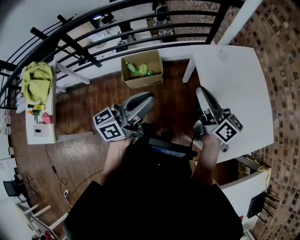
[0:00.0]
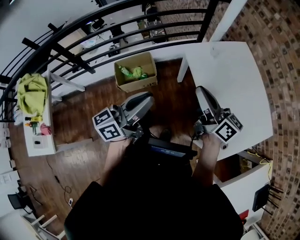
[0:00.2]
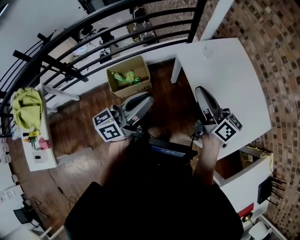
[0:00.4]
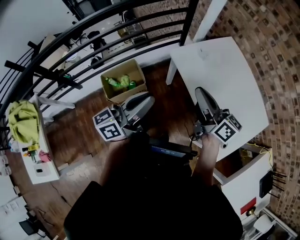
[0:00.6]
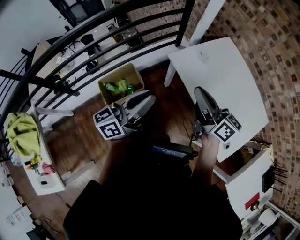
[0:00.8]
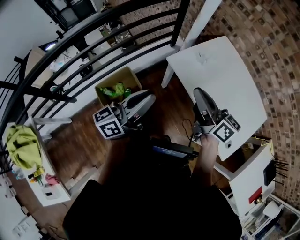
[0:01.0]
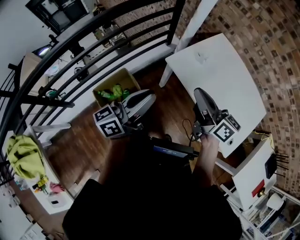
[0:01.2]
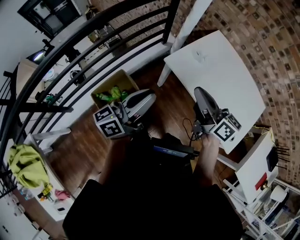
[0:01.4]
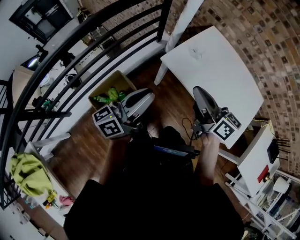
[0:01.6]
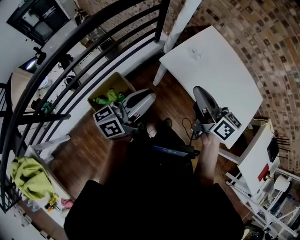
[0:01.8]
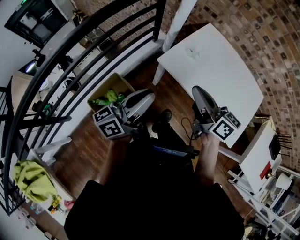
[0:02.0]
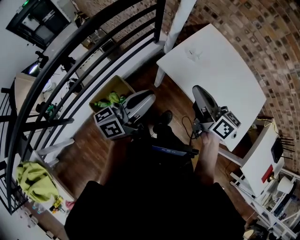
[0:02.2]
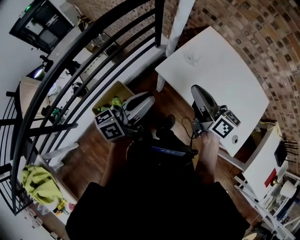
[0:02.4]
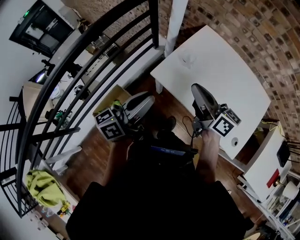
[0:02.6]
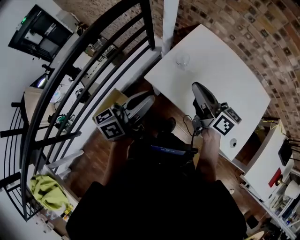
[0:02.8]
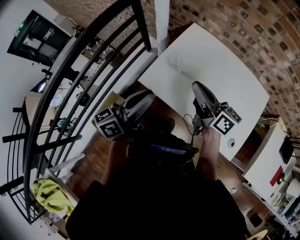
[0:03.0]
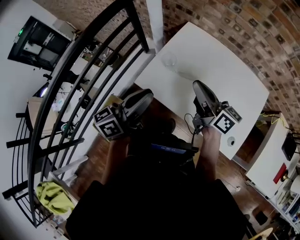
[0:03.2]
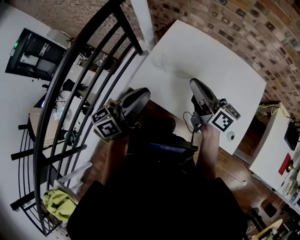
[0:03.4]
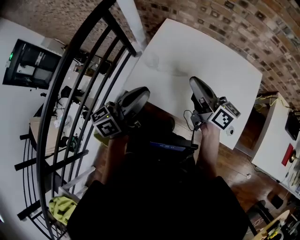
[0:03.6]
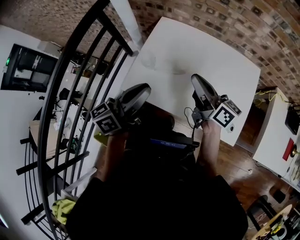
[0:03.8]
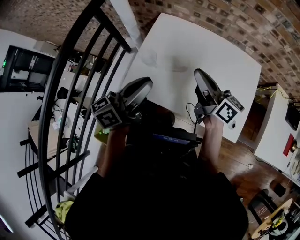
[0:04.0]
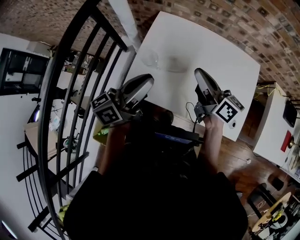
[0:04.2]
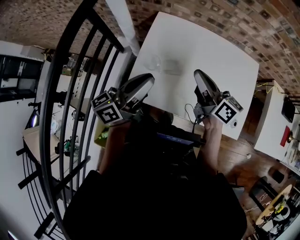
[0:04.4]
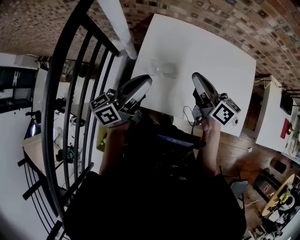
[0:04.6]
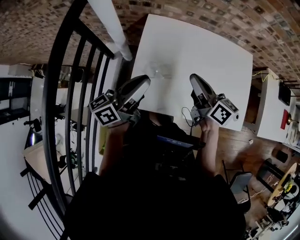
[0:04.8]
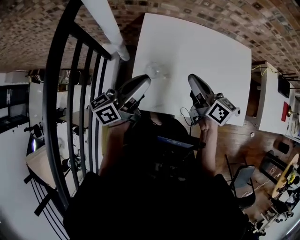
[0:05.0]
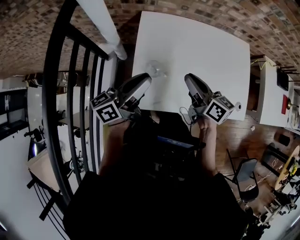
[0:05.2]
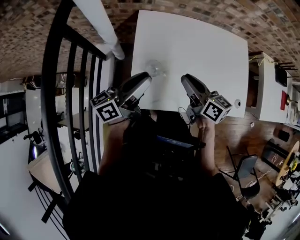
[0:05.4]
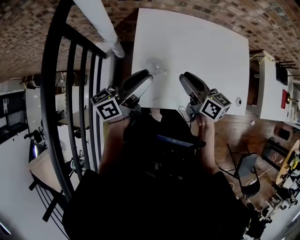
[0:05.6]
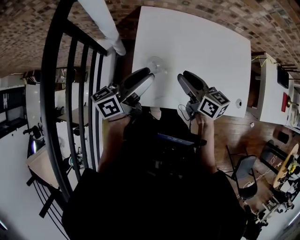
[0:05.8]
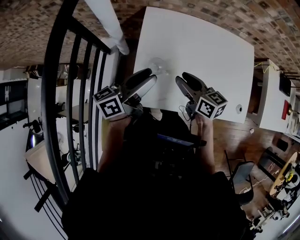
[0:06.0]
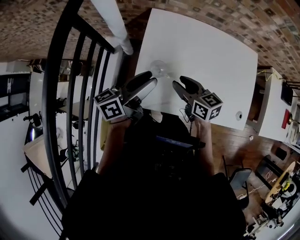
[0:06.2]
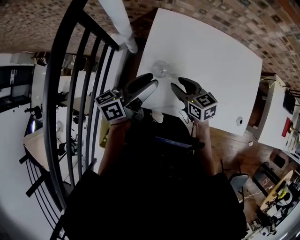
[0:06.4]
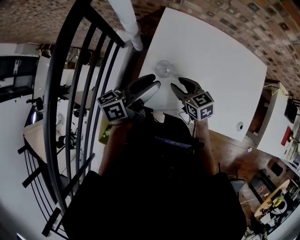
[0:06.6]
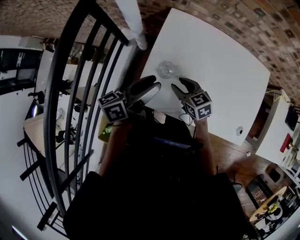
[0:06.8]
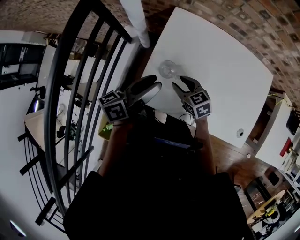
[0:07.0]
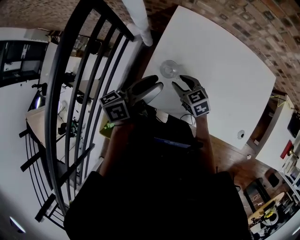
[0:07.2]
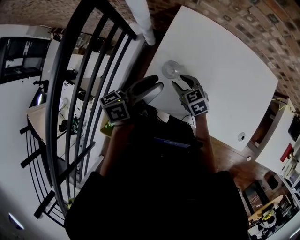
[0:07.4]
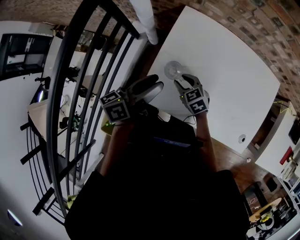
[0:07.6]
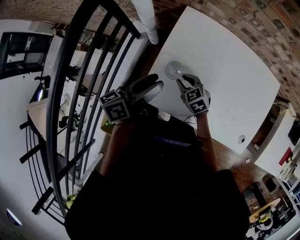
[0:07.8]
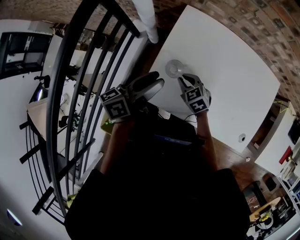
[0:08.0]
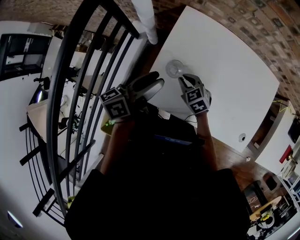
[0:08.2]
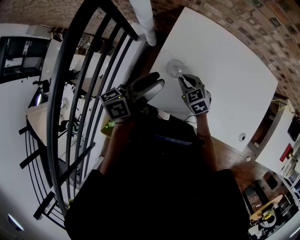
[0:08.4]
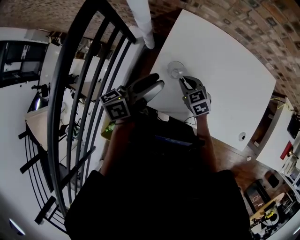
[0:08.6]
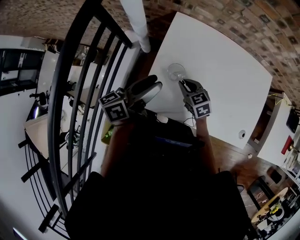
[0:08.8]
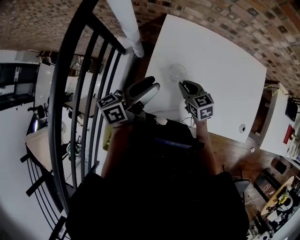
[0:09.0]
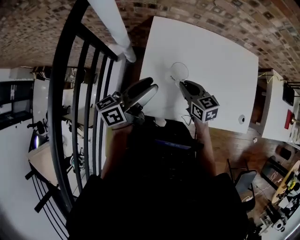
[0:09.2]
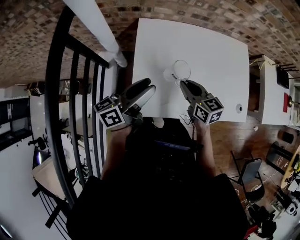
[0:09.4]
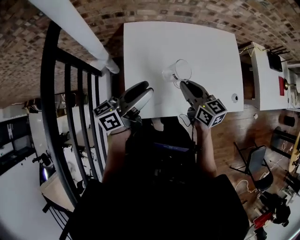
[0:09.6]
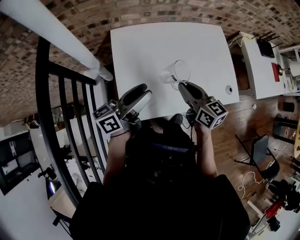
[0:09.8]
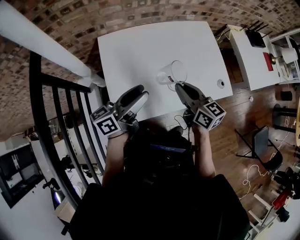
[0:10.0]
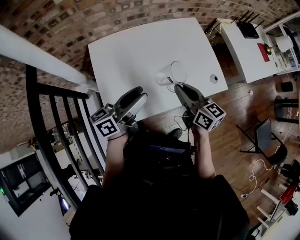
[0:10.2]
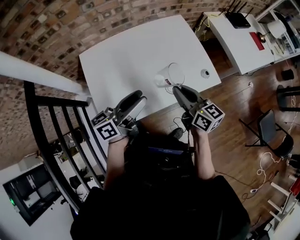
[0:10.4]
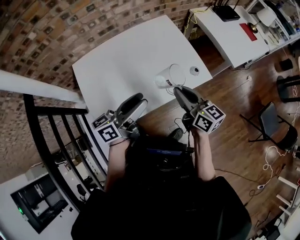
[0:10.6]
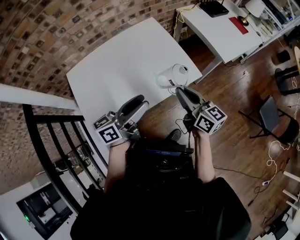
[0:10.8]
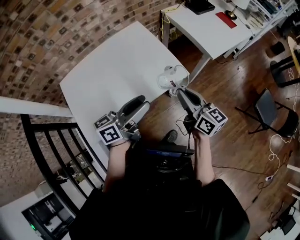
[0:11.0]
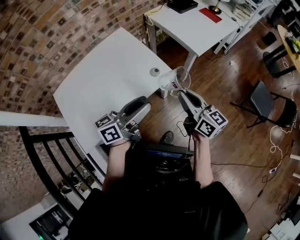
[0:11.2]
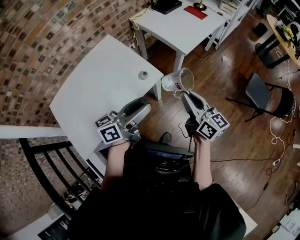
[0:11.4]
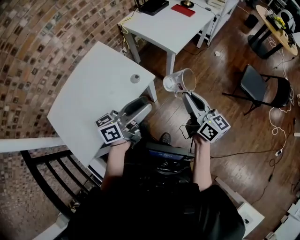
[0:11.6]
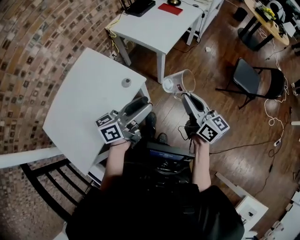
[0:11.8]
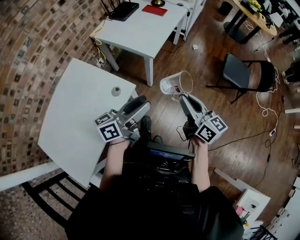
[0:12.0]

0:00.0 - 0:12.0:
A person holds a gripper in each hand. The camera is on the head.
0:00.0 - 0:01.6: The right gripper ends up some 20 cm from where it was, and swivels approximately 30 degrees, while the left gripper ends up approximately 30 cm from where it was, and turns by about 30 degrees.
0:01.6 - 0:03.0: Both grippers move forward and to the right, some 25 cm.
0:03.0 - 0:04.4: The left gripper heads forward, covering roughly 15 cm, and turns by about 20 degrees. Meanwhile the right gripper travels forward and to the right by approximately 10 cm, and turns by about 20 degrees.
0:04.4 - 0:06.0: The right gripper is displaced downward and to the left by some 15 cm, swivels about 20 degrees, and opens. Meanwhile the left gripper goes some 10 cm to the left, downward and forward, and opens up.
0:06.0 - 0:07.6: The right gripper shifts roughly 15 cm downward, and rotates some 50 degrees.
0:07.6 - 0:09.0: The right gripper changes place by about 5 cm, swivels about 20 degrees, and closes.
0:09.0 - 0:10.4: The right gripper shifts by some 40 cm, and rotates some 50 degrees. Meanwhile the left gripper moves approximately 30 cm, and changes its angle by roughly 40 degrees.
0:10.4 - 0:12.0: The pair of grippers is taken about 60 cm. The left gripper rotates approximately 40 degrees, while the right gripper swivels some 40 degrees.

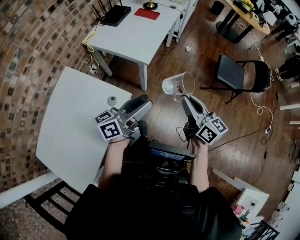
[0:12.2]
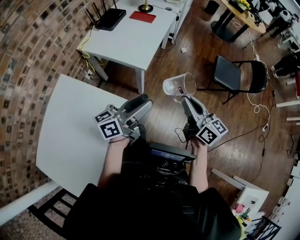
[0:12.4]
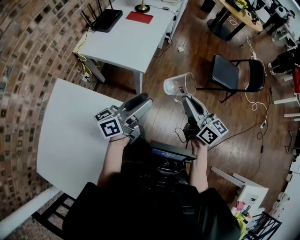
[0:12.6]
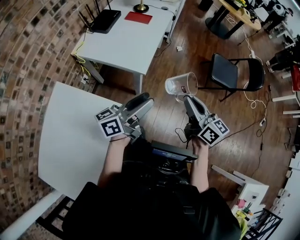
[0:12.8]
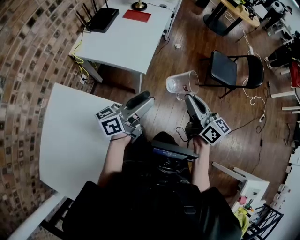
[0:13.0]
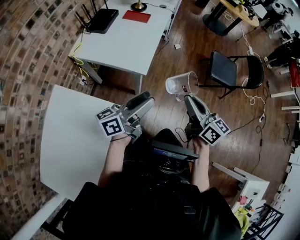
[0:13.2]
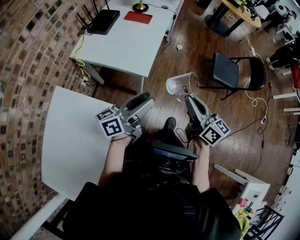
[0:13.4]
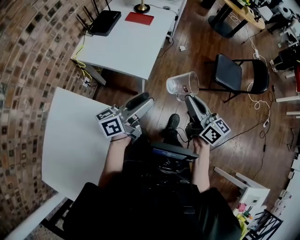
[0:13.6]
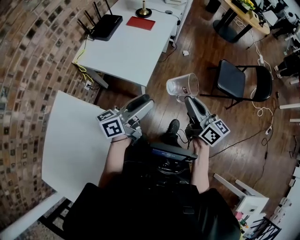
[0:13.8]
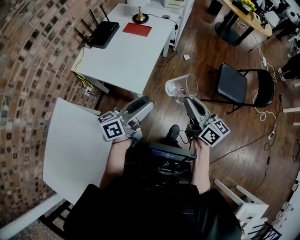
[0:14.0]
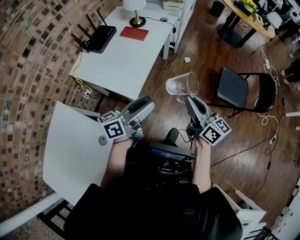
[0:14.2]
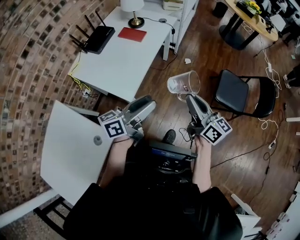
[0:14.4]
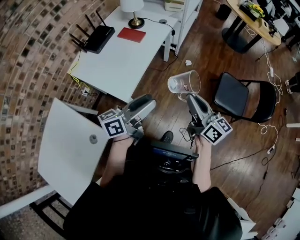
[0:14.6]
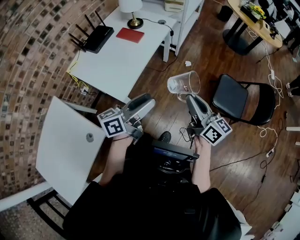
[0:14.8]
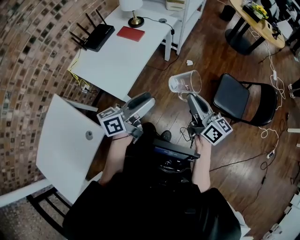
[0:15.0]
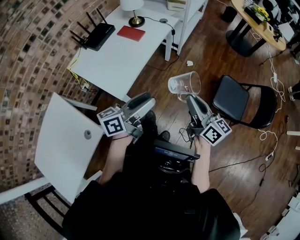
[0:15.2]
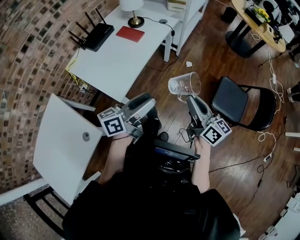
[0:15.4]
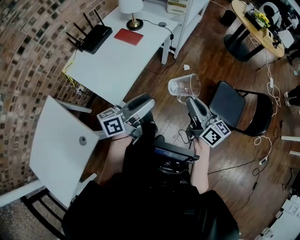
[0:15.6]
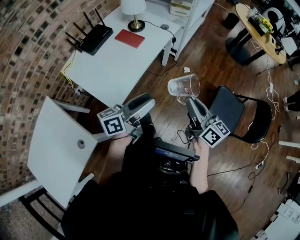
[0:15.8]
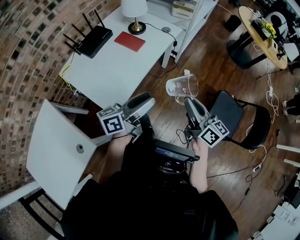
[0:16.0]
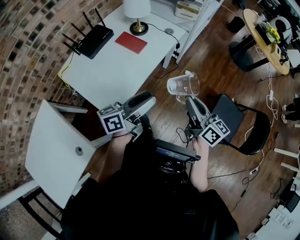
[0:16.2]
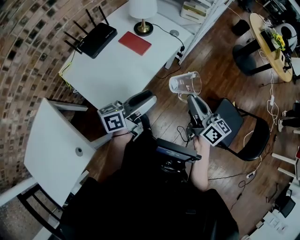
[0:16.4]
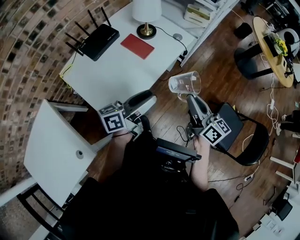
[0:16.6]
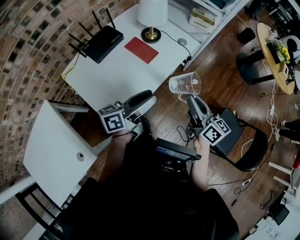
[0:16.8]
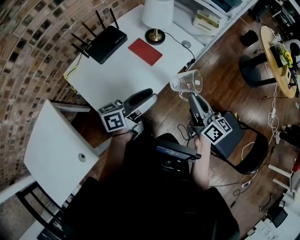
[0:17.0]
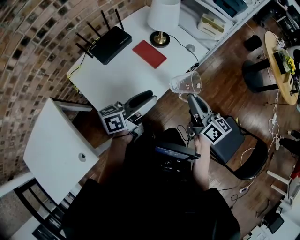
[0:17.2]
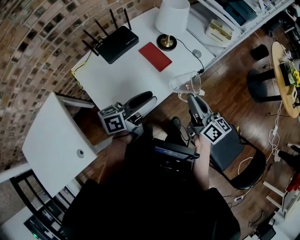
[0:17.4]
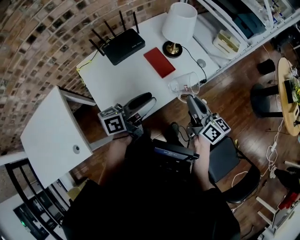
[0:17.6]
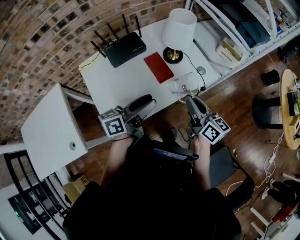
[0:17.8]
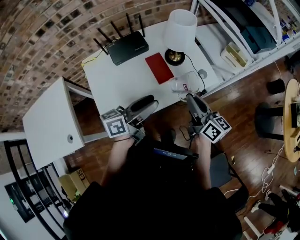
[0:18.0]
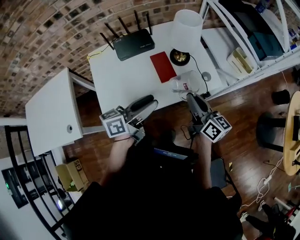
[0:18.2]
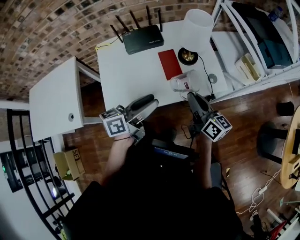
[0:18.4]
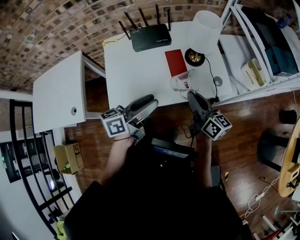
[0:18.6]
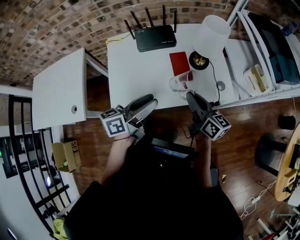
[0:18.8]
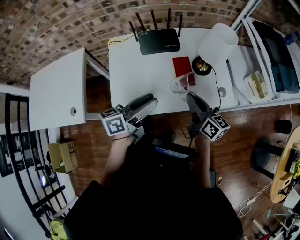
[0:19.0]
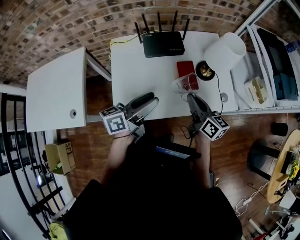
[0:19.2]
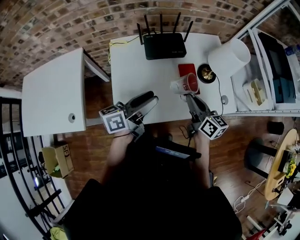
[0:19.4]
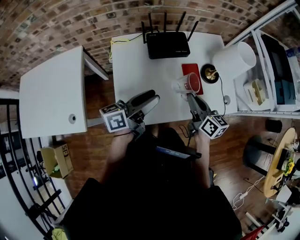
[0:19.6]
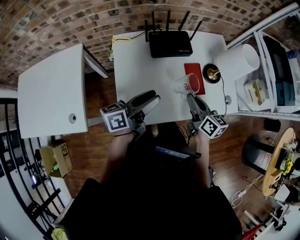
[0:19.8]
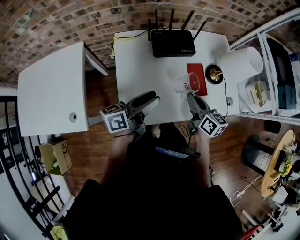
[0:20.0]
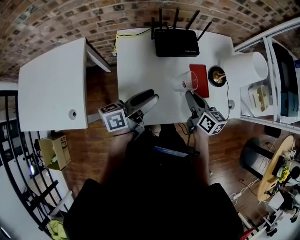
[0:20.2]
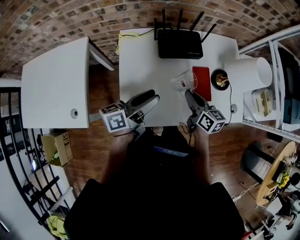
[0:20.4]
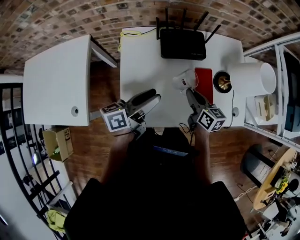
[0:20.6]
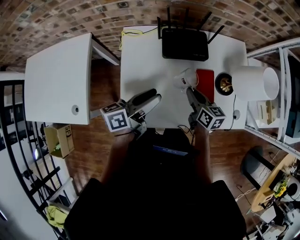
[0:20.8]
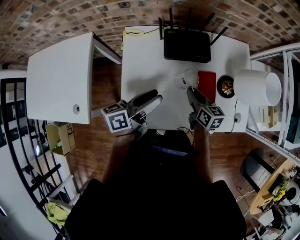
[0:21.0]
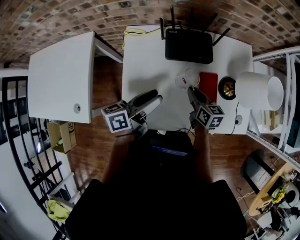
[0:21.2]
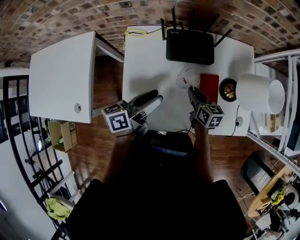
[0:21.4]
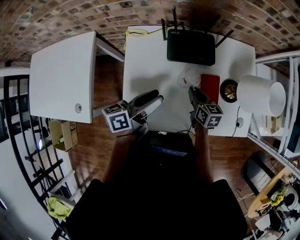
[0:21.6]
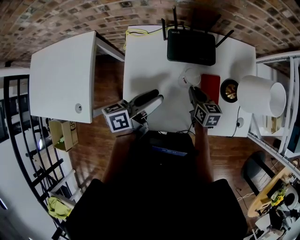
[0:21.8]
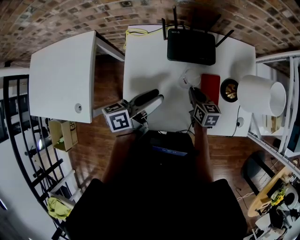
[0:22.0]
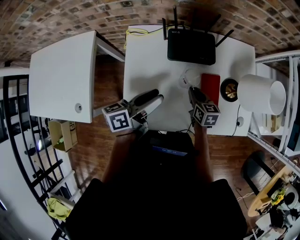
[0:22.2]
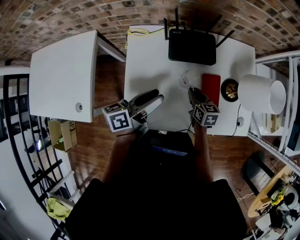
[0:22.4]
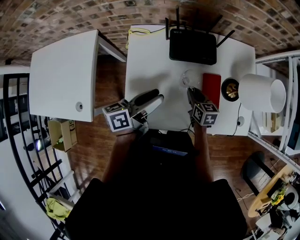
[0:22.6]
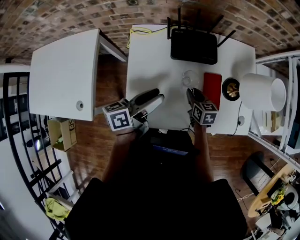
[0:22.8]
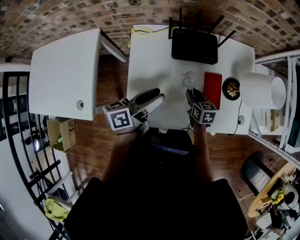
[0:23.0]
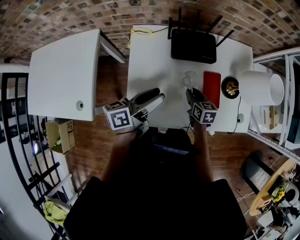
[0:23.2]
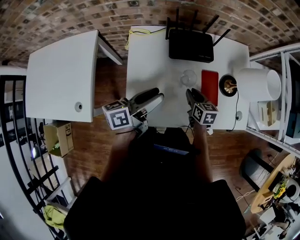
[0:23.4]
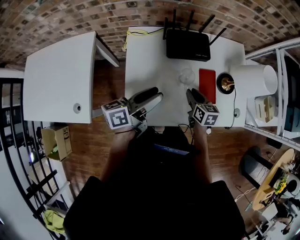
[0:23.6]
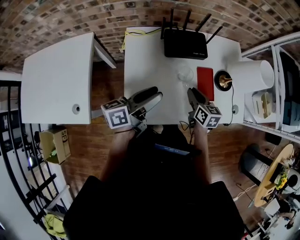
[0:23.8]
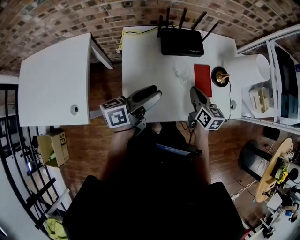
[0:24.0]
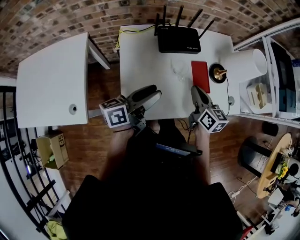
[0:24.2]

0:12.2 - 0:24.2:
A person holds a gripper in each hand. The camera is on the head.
0:12.2 - 0:13.8: The grippers both shift forward by about 20 cm.
0:13.8 - 0:15.2: The grippers both shift to the right and forward by roughly 30 cm.
0:15.2 - 0:16.6: Both grippers move forward, about 30 cm.
0:16.6 - 0:18.2: The right gripper ends up some 25 cm from where it was, and swivels approximately 30 degrees. Meanwhile the left gripper changes place by some 15 cm, and swivels approximately 30 degrees.
0:18.2 - 0:19.8: The left gripper moves to the left, roughly 25 cm, while the right gripper travels to the left and forward by roughly 25 cm.
0:19.8 - 0:21.2: The right gripper goes about 15 cm forward and downward. Meanwhile the left gripper goes approximately 10 cm forward.
0:21.2 - 0:22.6: The grippers make only small movements.
0:22.6 - 0:24.2: The right gripper heads upward and backward, covering about 20 cm, and changes its angle by approximately 20 degrees; the left gripper travels backward by some 10 cm.
